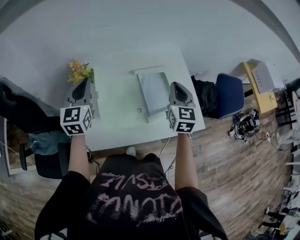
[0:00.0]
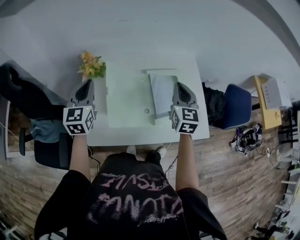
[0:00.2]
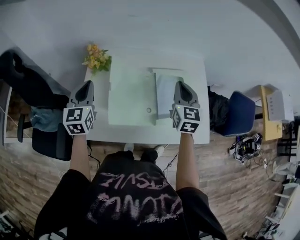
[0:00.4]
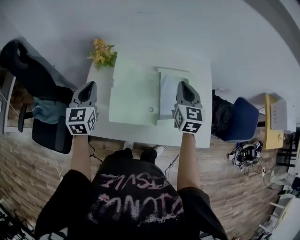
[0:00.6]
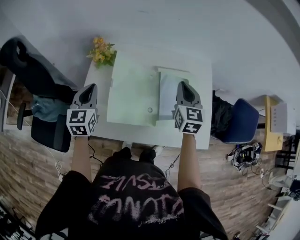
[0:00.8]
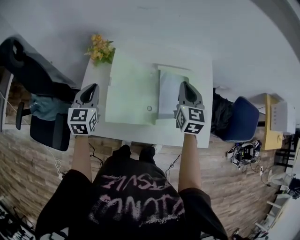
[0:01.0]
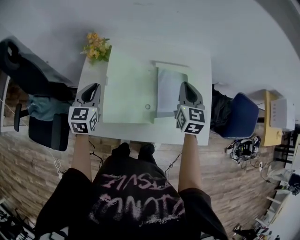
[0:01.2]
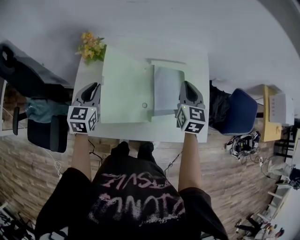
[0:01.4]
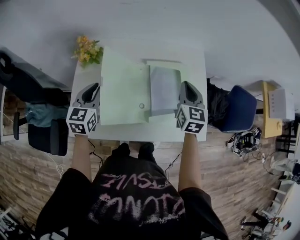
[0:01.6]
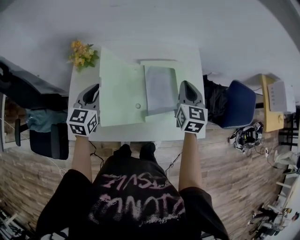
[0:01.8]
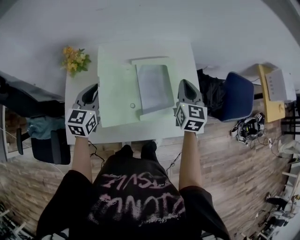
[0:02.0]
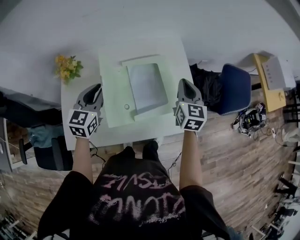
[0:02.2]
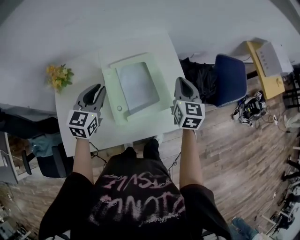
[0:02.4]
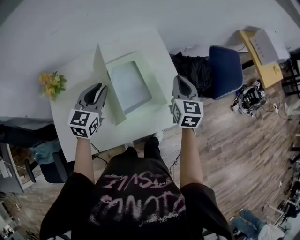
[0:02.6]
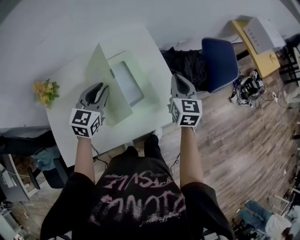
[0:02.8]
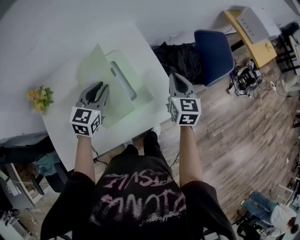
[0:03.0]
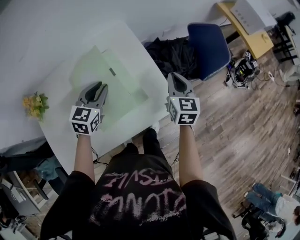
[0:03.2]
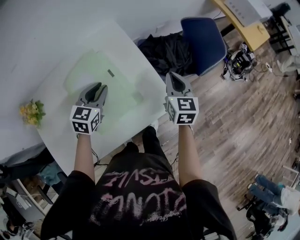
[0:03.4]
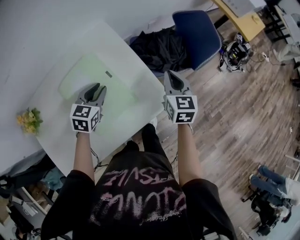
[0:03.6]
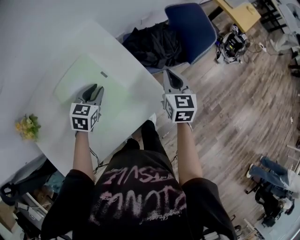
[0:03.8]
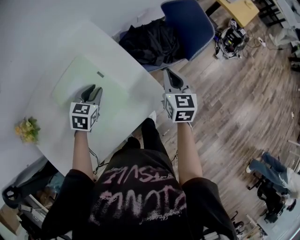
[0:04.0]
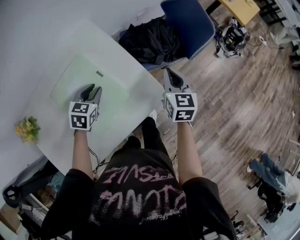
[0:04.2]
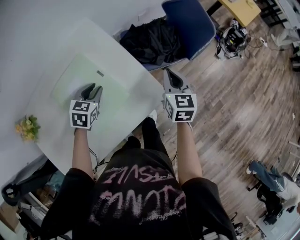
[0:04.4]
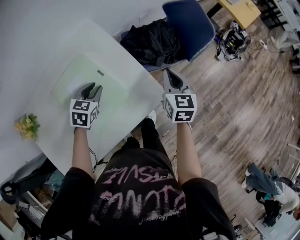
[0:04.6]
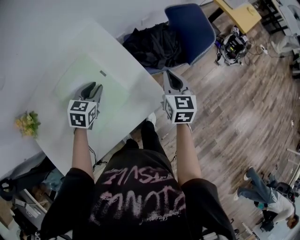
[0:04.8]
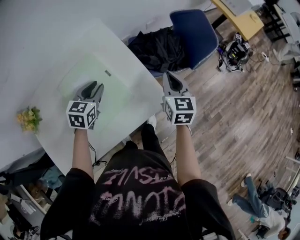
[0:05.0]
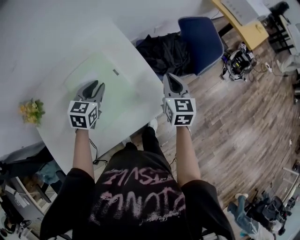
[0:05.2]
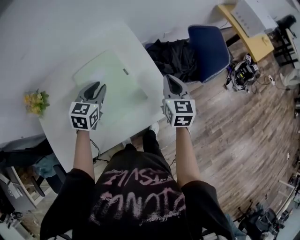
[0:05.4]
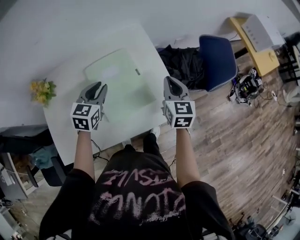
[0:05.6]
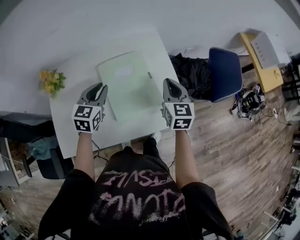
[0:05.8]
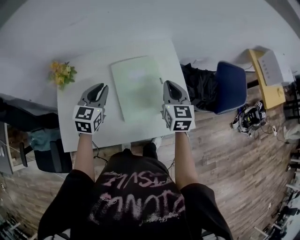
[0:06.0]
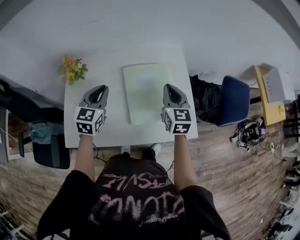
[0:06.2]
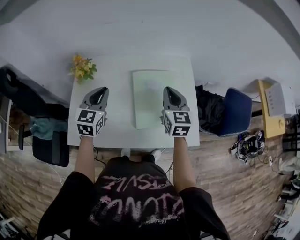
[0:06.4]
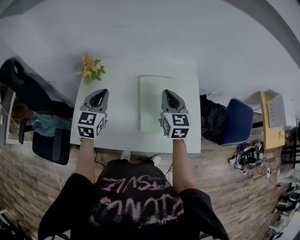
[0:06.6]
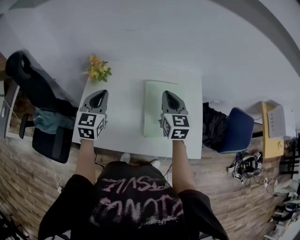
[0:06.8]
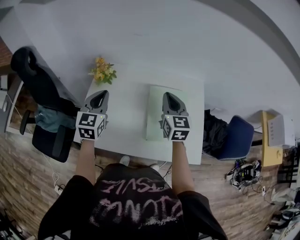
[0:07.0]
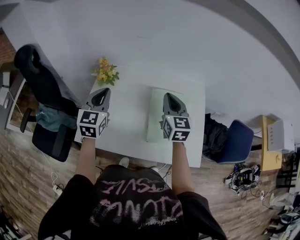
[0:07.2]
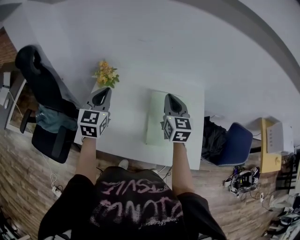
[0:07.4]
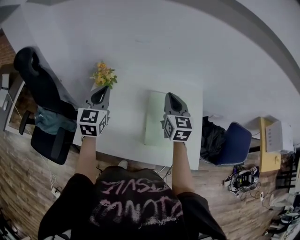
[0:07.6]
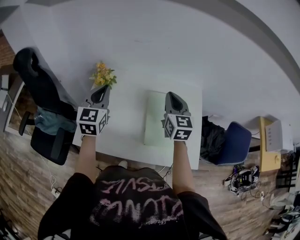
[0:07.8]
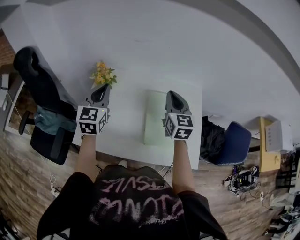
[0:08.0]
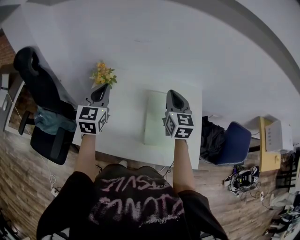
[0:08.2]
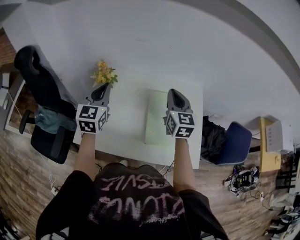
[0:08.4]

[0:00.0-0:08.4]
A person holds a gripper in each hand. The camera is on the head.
0:00.0 to 0:01.4: The left gripper moves downward, about 15 cm. The right gripper is displaced downward and forward by approximately 10 cm.
0:01.4 to 0:02.8: The left gripper changes place by about 30 cm, and rotates roughly 40 degrees, while the right gripper changes place by some 25 cm, and swivels about 20 degrees.
0:02.8 to 0:04.2: The right gripper goes about 15 cm to the right and downward. The left gripper heads downward, to the right and forward, covering roughly 20 cm, and rotates roughly 30 degrees.
0:04.2 to 0:05.6: The left gripper shifts some 15 cm upward, to the left and backward, and rotates roughly 30 degrees; the right gripper heads to the left and upward, covering about 15 cm, and swivels approximately 20 degrees.
0:05.6 to 0:07.0: The left gripper shifts by some 30 cm, turns by approximately 40 degrees, and closes its fingers; the right gripper changes place by some 30 cm, and swivels approximately 30 degrees.
0:07.0 to 0:08.4: The left gripper ends up about 5 cm from where it was.

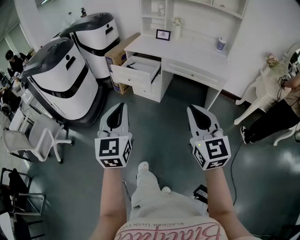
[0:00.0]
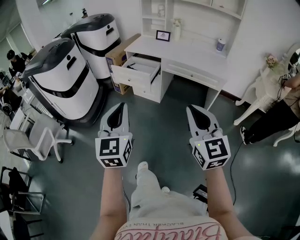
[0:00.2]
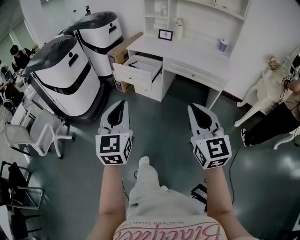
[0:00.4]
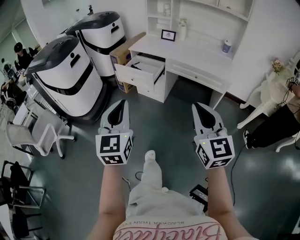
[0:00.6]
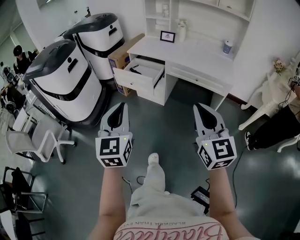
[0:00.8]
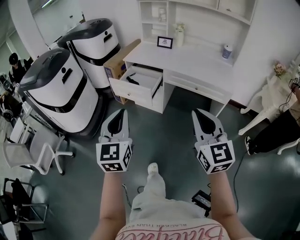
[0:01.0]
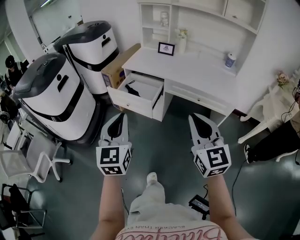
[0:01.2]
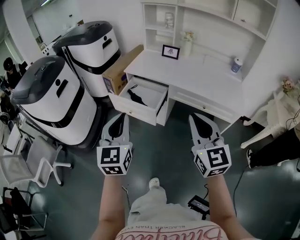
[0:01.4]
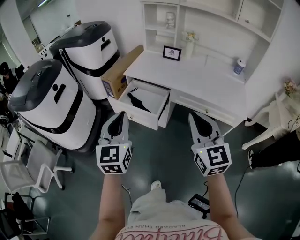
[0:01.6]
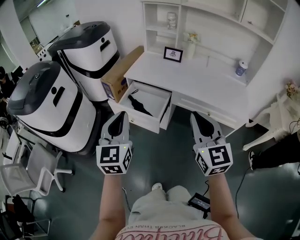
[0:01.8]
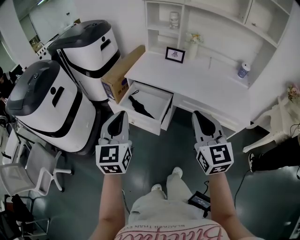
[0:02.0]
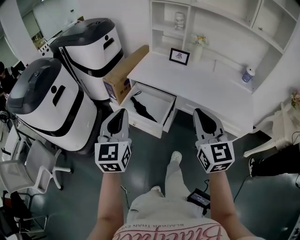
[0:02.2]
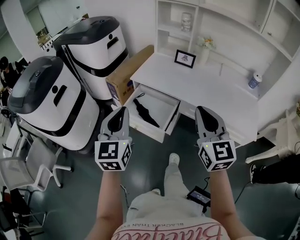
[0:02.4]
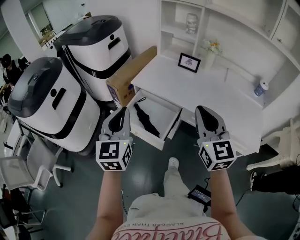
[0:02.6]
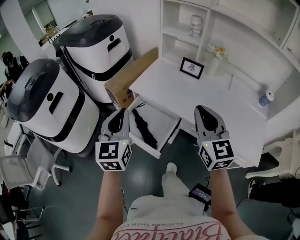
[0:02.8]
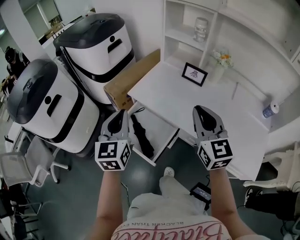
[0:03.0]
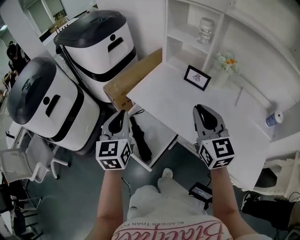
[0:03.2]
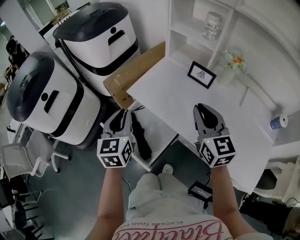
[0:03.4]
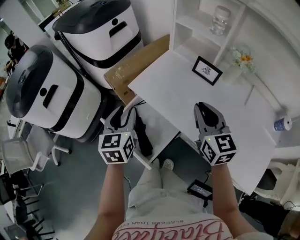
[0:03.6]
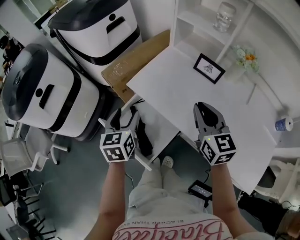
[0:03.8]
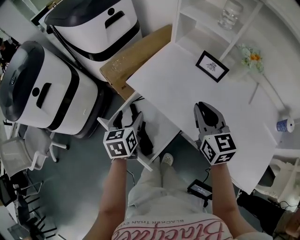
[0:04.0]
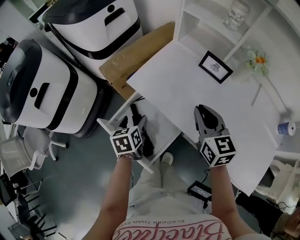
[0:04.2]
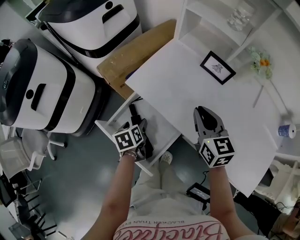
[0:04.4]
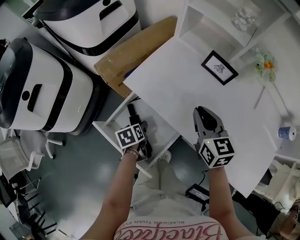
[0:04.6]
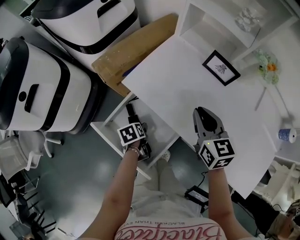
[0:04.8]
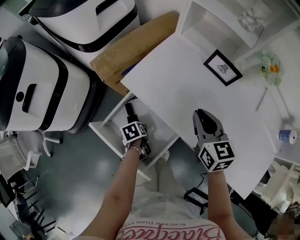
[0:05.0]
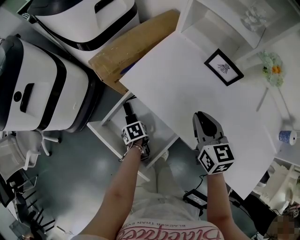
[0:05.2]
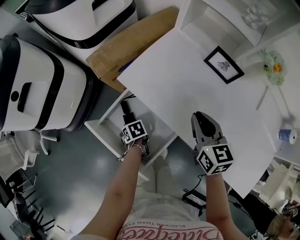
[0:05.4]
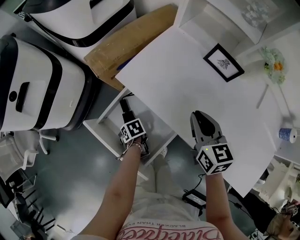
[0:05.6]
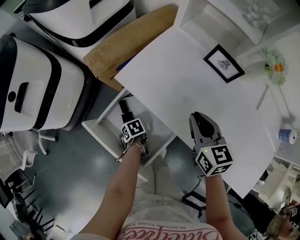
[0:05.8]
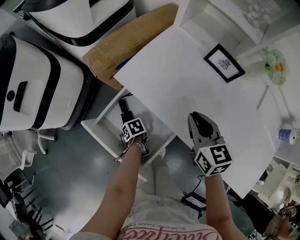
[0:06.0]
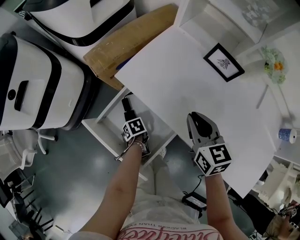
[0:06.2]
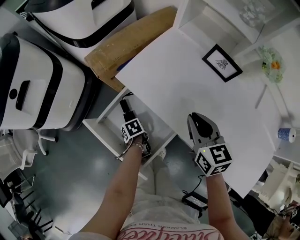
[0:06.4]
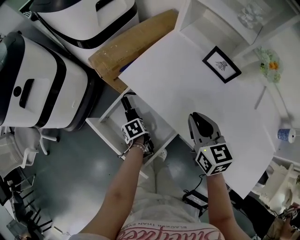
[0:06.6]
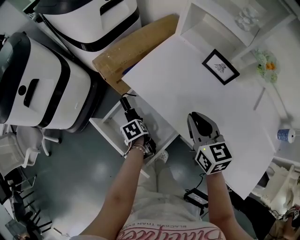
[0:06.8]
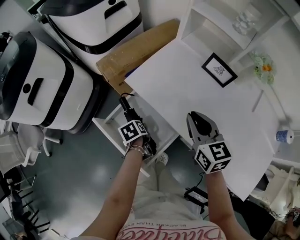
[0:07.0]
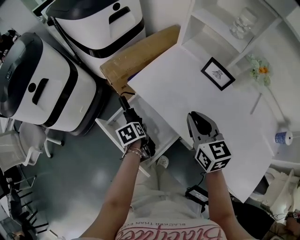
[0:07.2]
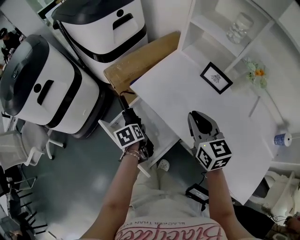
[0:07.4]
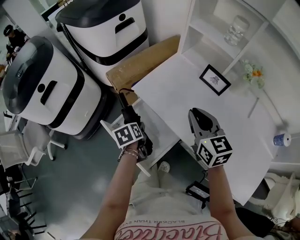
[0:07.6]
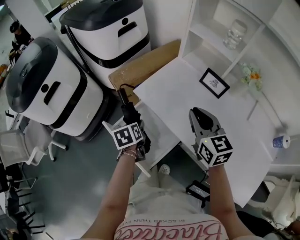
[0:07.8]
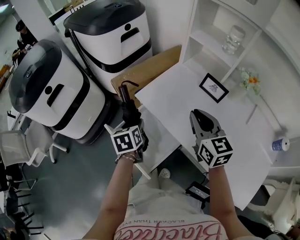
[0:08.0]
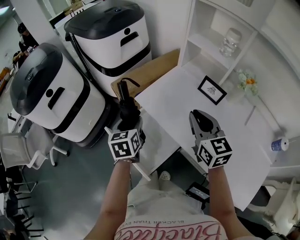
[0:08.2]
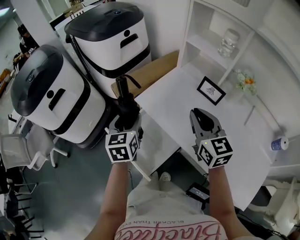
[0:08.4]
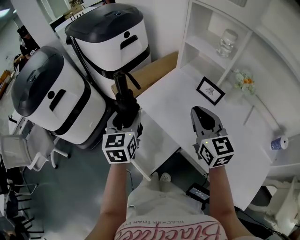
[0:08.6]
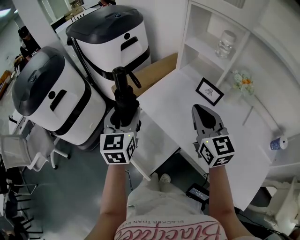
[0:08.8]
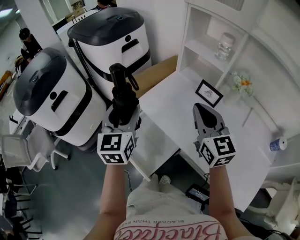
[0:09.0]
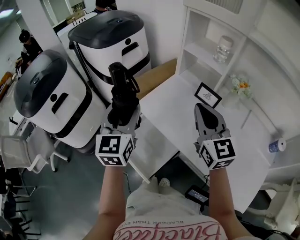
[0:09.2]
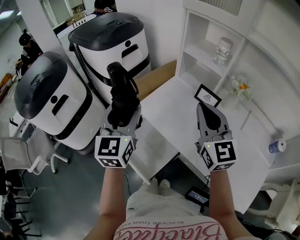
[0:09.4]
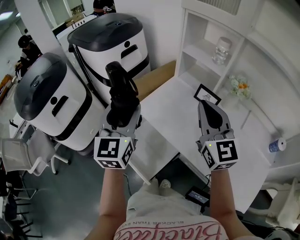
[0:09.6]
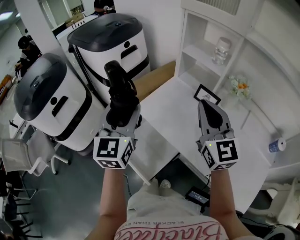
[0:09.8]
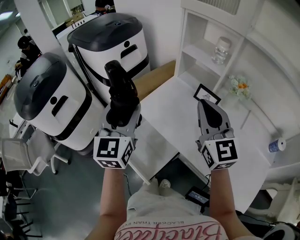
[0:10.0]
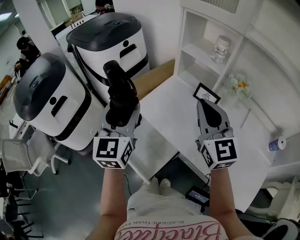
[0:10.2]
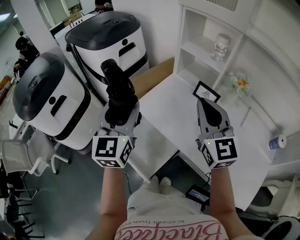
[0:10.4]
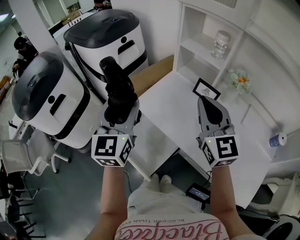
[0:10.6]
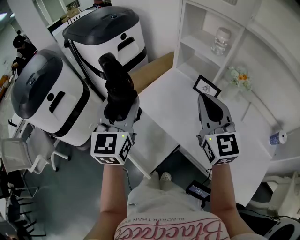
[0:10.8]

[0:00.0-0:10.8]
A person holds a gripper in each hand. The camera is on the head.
0:00.0 to 0:01.6: Both grippers move forward, approximately 35 cm.
0:01.6 to 0:03.0: The two grippers go some 30 cm forward.
0:03.0 to 0:04.6: The right gripper travels downward and forward by about 25 cm, and rotates roughly 20 degrees; the left gripper travels downward by roughly 35 cm, tips its fingers downward by approximately 50 degrees, and opens up.
0:04.6 to 0:06.2: The left gripper travels downward by about 15 cm, and swivels about 30 degrees.
0:06.2 to 0:07.8: The left gripper travels upward by approximately 25 cm, and tilts its fingers some 40 degrees upward. The right gripper is displaced upward by approximately 15 cm.
0:07.8 to 0:09.2: The left gripper heads upward, covering approximately 30 cm, and points its fingers approximately 50 degrees further upward. Meanwhile the right gripper travels upward by some 10 cm.
0:09.2 to 0:10.8: The grippers move only a little.

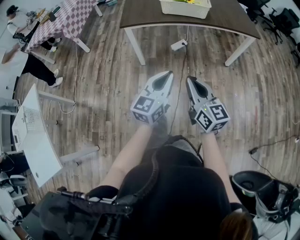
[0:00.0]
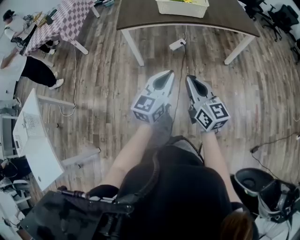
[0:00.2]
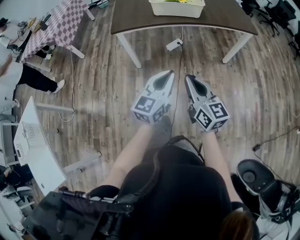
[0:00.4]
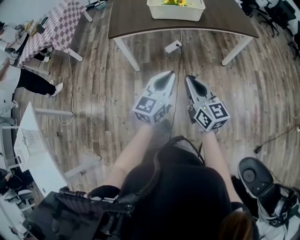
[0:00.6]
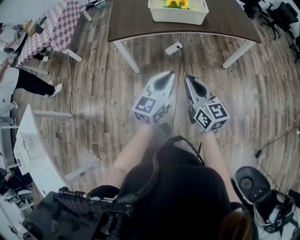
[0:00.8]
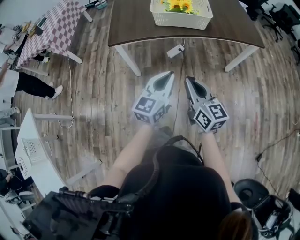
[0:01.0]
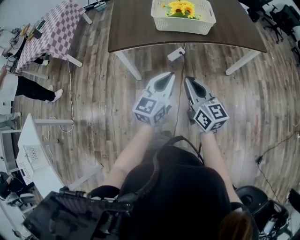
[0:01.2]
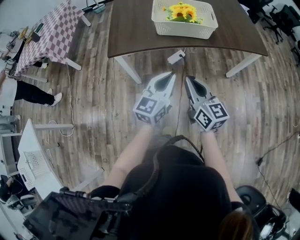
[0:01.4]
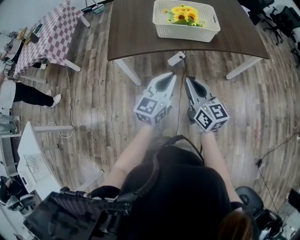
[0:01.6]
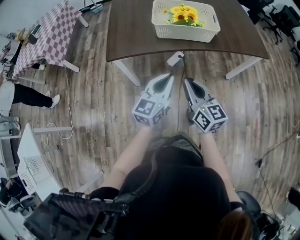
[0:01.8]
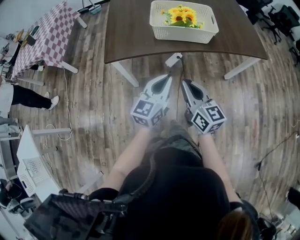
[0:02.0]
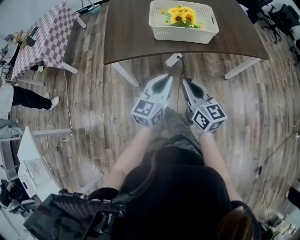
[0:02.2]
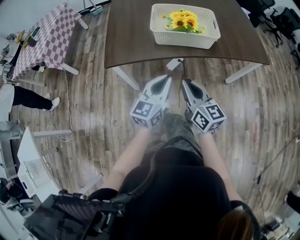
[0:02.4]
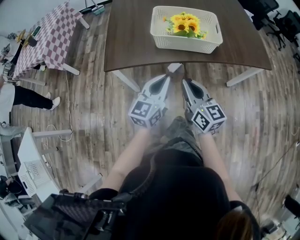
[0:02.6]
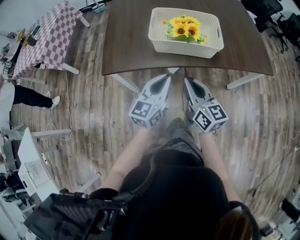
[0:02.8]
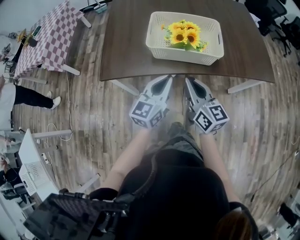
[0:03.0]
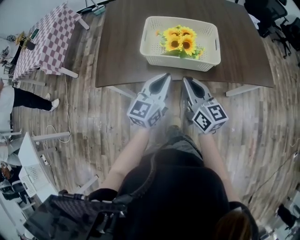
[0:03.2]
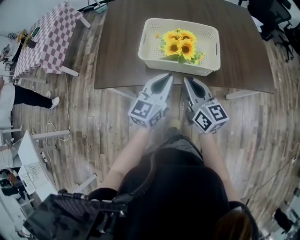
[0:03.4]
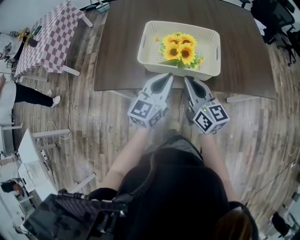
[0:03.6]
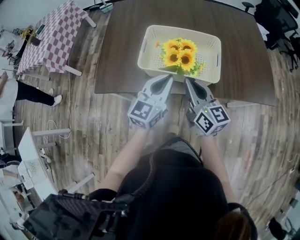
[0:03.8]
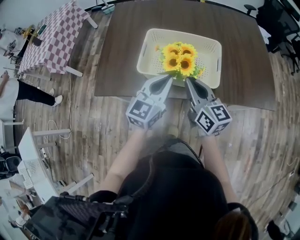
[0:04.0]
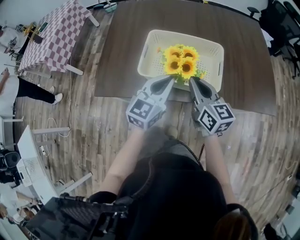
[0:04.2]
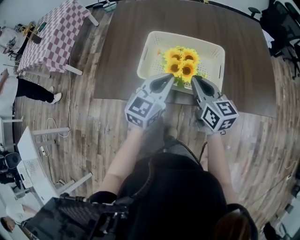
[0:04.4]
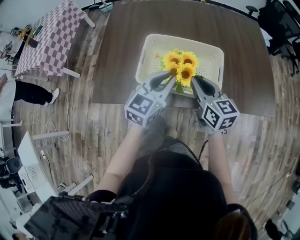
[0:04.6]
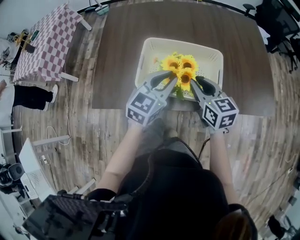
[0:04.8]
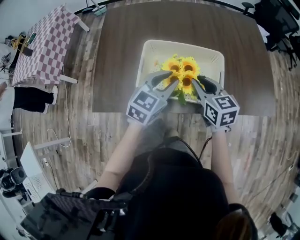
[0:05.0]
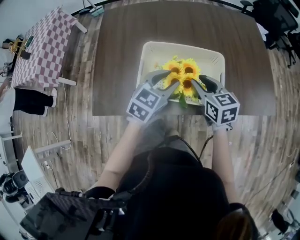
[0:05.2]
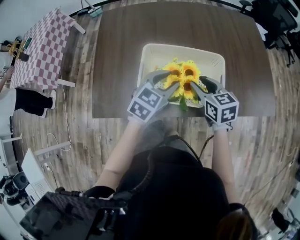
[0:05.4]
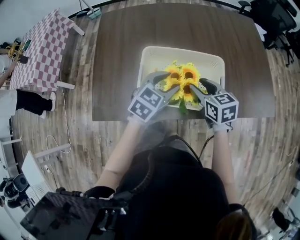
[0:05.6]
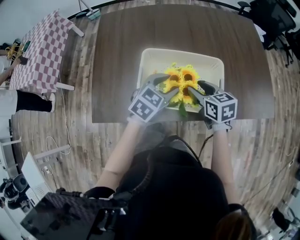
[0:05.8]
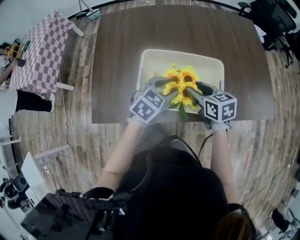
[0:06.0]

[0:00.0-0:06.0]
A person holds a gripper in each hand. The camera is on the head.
0:00.0 to 0:01.6: Both grippers travel together forward, some 25 cm.
0:01.6 to 0:03.0: The grippers both shift forward by some 15 cm.
0:03.0 to 0:04.4: Both grippers move forward, approximately 15 cm.
0:04.4 to 0:06.0: Both grippers move downward and forward, approximately 10 cm. The right gripper turns by about 20 degrees, and opens. The left gripper rotates some 30 degrees, and opens up.
